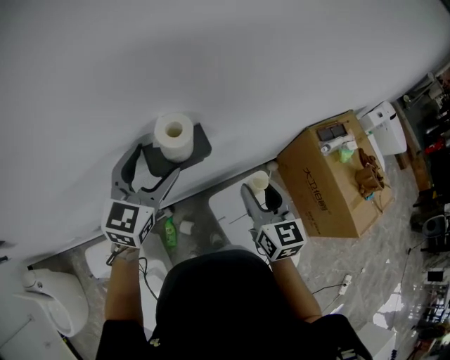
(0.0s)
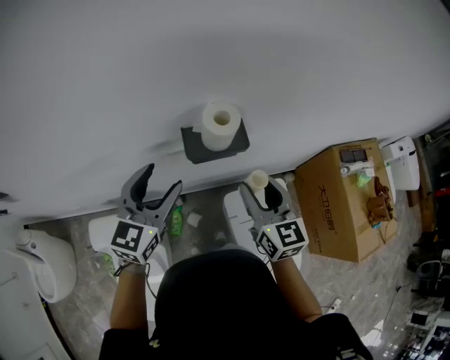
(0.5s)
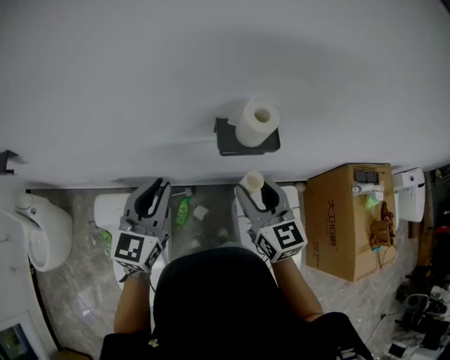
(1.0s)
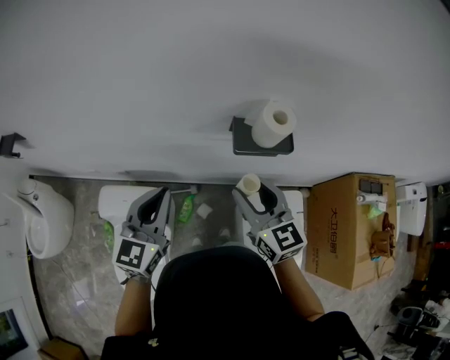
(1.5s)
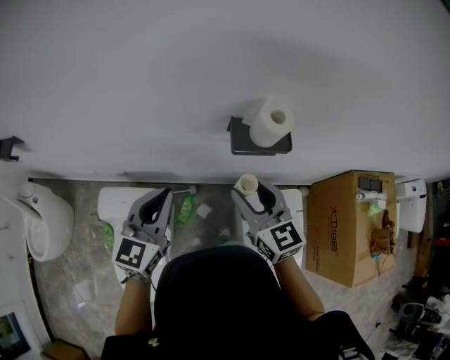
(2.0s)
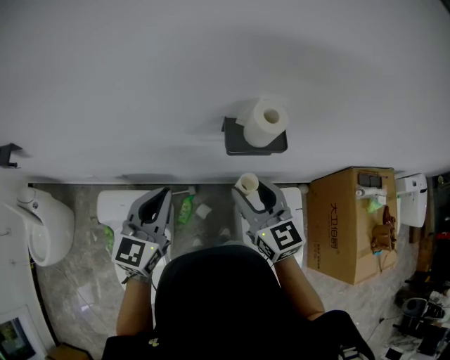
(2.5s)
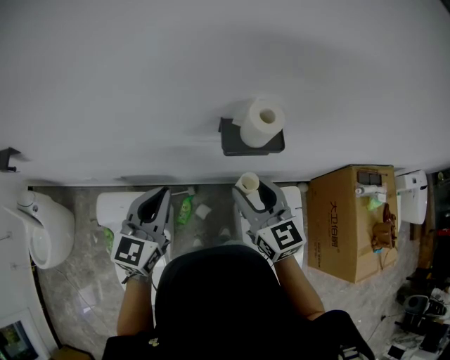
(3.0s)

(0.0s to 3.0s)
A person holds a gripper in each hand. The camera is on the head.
0.0s - 1.5s: The left gripper shifts by roughly 25 cm, changes its angle by about 30 degrees, and closes its fingers. Meanwhile the right gripper ends up roughly 20 cm from where it was, and rotates about 40 degrees.
1.5s - 3.0s: The grippers move only a little.

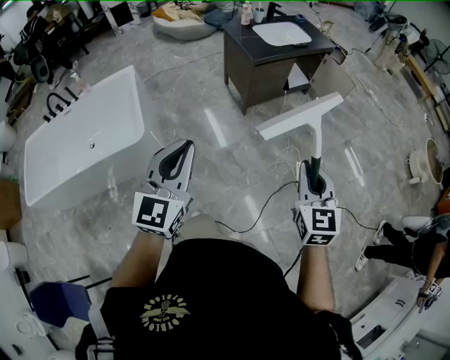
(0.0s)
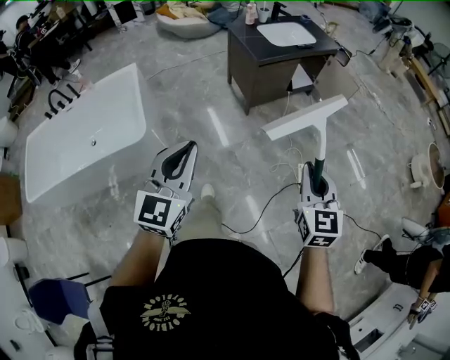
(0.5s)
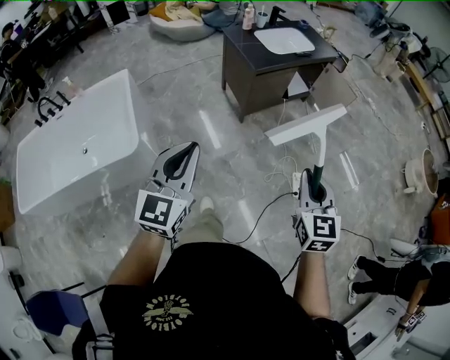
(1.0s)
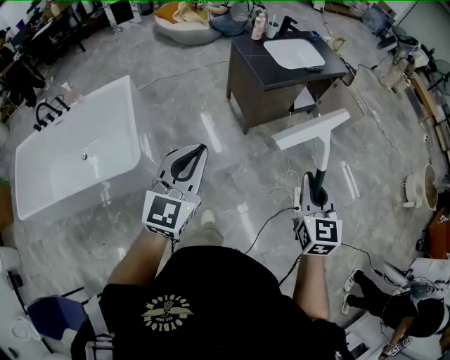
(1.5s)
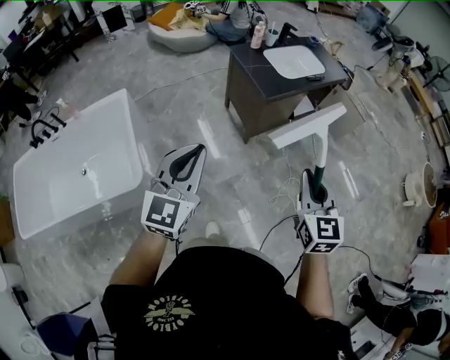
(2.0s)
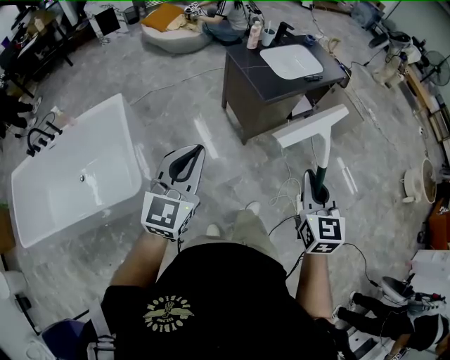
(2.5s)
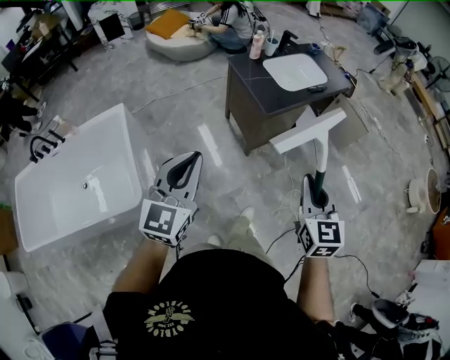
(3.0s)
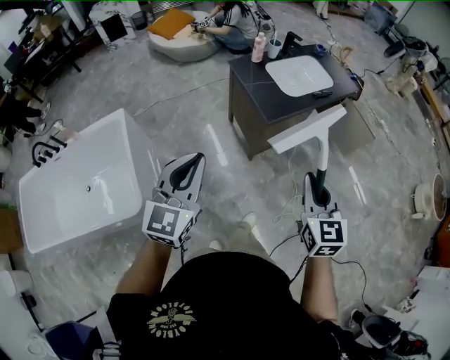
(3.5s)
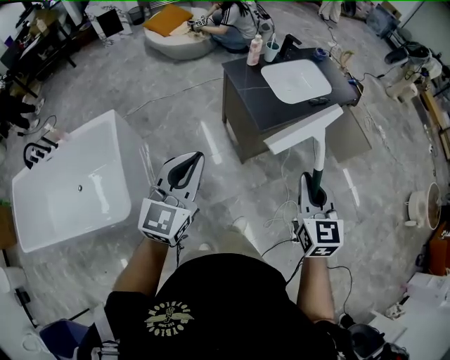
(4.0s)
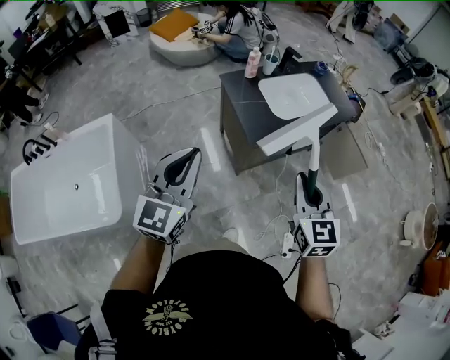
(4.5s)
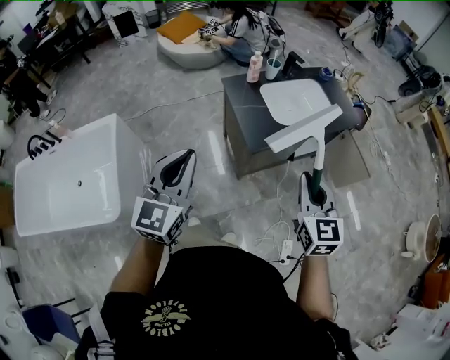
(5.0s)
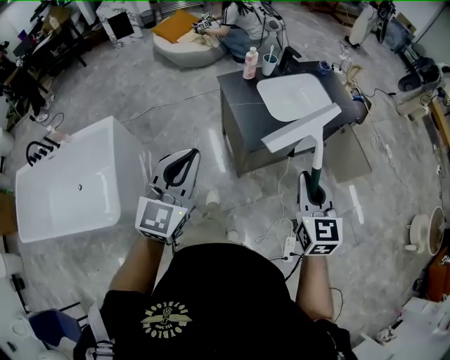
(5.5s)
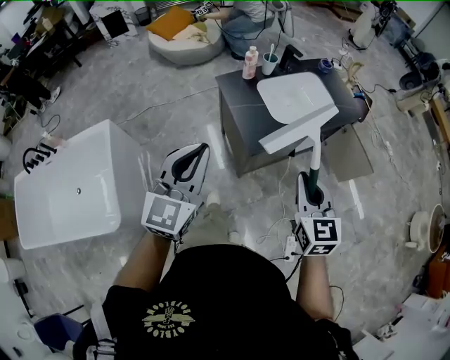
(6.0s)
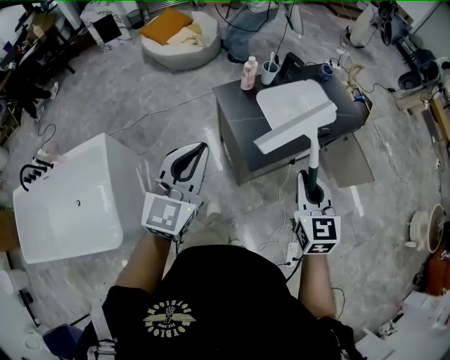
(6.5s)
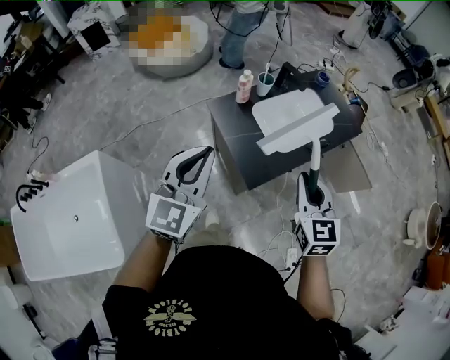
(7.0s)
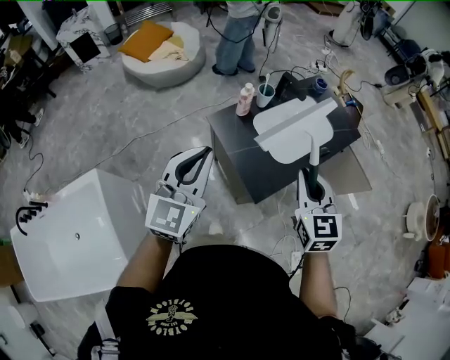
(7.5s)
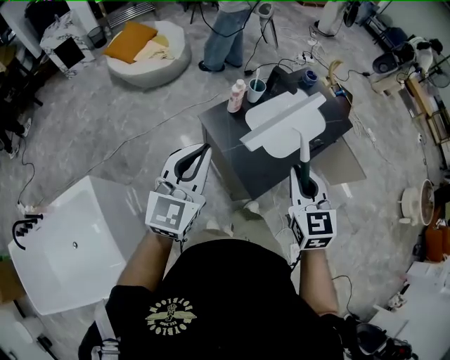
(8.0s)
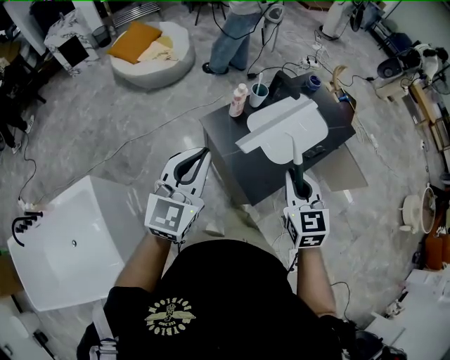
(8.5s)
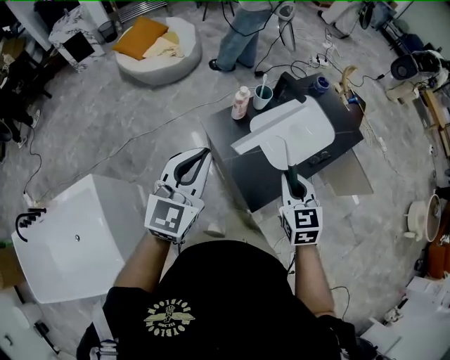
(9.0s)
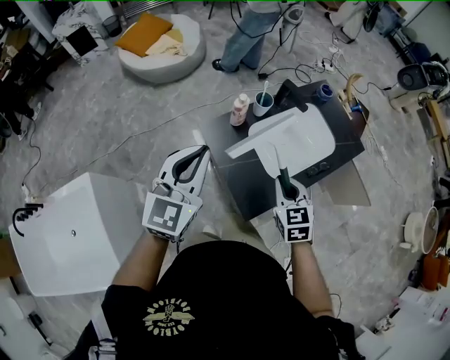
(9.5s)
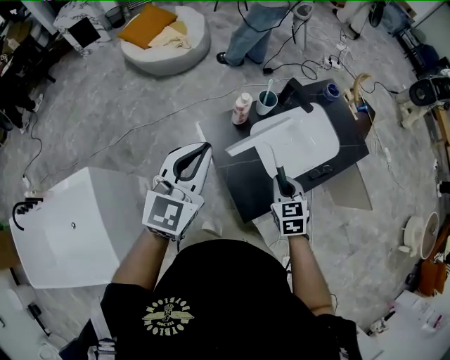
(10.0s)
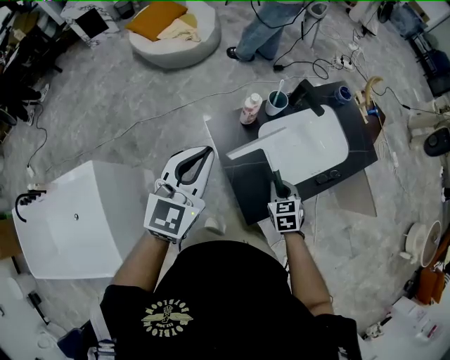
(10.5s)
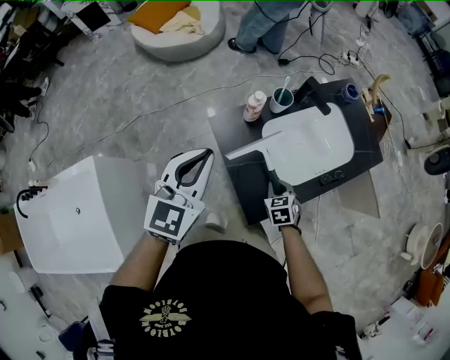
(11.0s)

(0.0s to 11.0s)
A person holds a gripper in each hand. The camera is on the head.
0.0s - 2.0s: Both grippers move forward and to the left, roughly 30 cm.
2.0s - 3.5s: Both grippers move forward, roughly 15 cm.
3.5s - 5.5s: Both grippers travel together forward and to the right, some 20 cm.
5.5s - 7.5s: The right gripper goes some 25 cm forward and to the left. Meanwhile the left gripper is displaced forward by about 30 cm.
7.5s - 9.0s: The left gripper shifts roughly 5 cm forward. The right gripper is displaced downward and forward by roughly 10 cm.
9.0s - 11.0s: The right gripper goes about 25 cm downward, and turns by approximately 30 degrees. The left gripper travels forward and downward by about 10 cm.

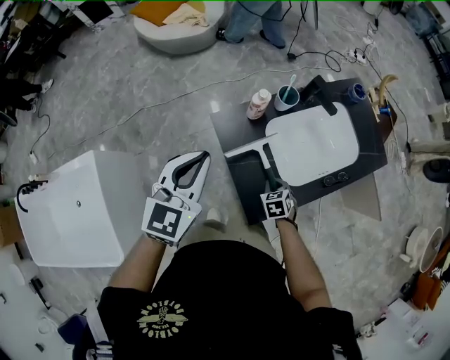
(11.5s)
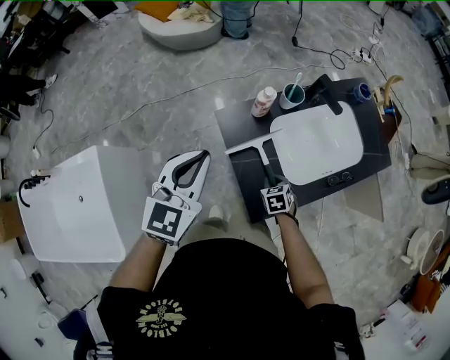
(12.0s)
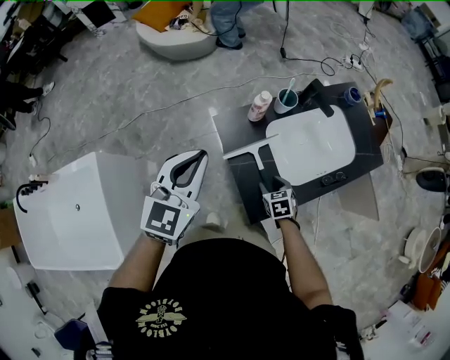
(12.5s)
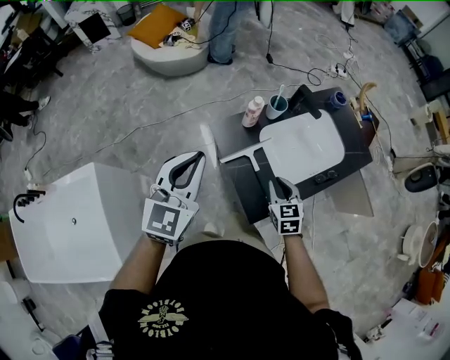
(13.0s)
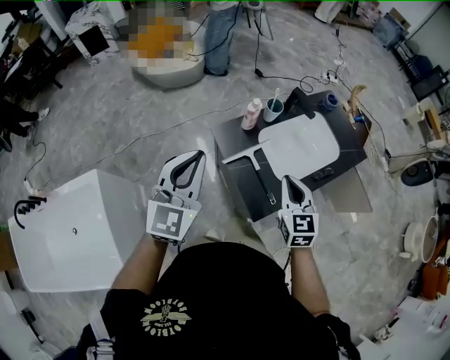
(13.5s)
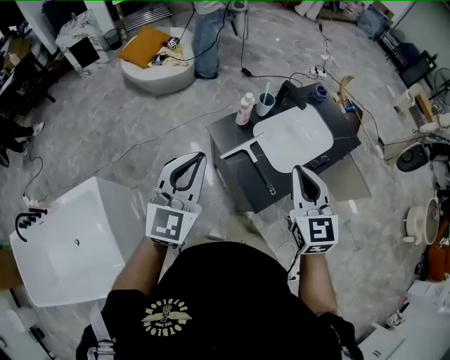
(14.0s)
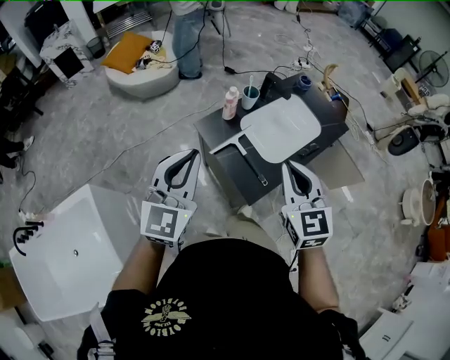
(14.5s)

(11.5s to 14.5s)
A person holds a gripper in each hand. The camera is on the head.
11.5s - 13.0s: The left gripper is displaced upward by some 5 cm, while the right gripper shifts about 15 cm upward, rotates some 30 degrees, and opens, then closes once more.
13.0s - 14.5s: The right gripper heads upward and backward, covering some 25 cm, and turns by some 20 degrees, while the left gripper travels backward and upward by some 10 cm.

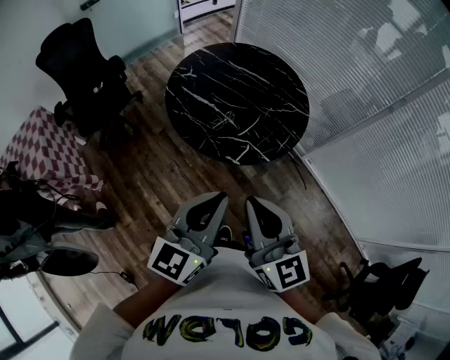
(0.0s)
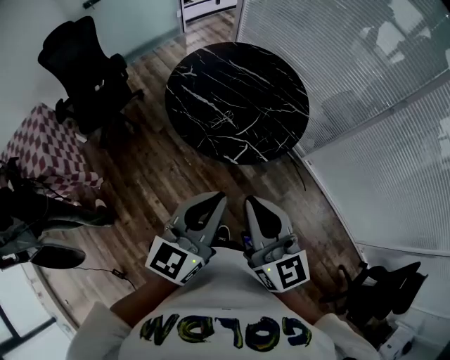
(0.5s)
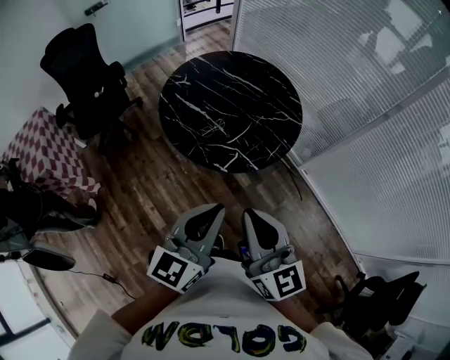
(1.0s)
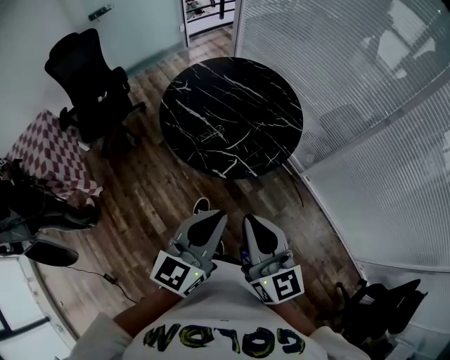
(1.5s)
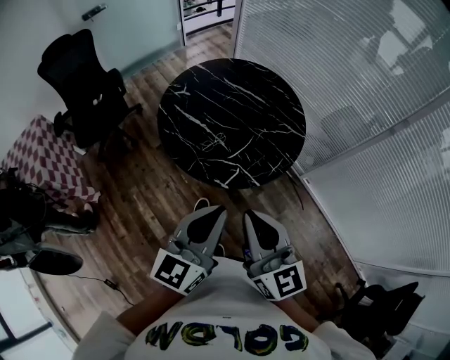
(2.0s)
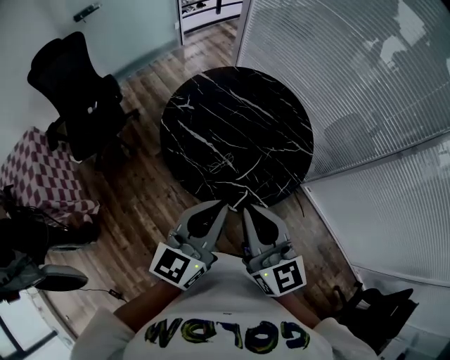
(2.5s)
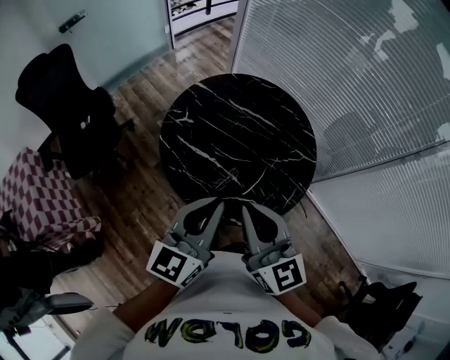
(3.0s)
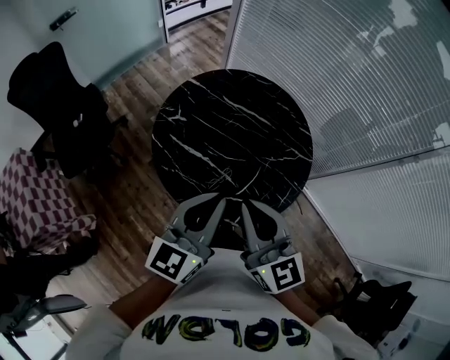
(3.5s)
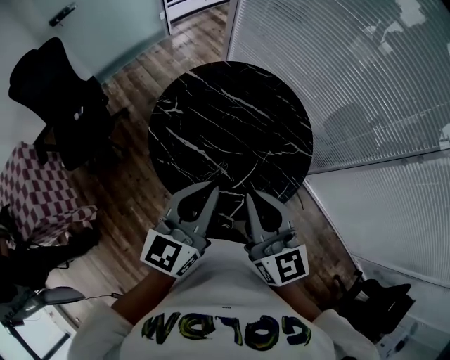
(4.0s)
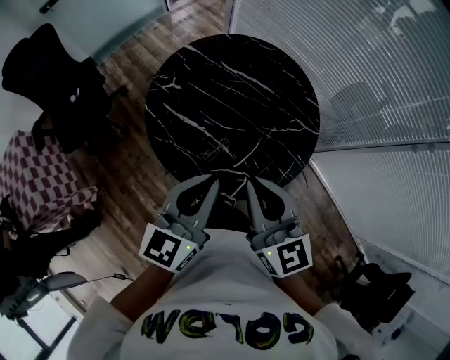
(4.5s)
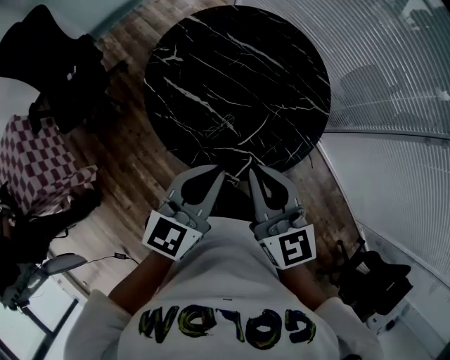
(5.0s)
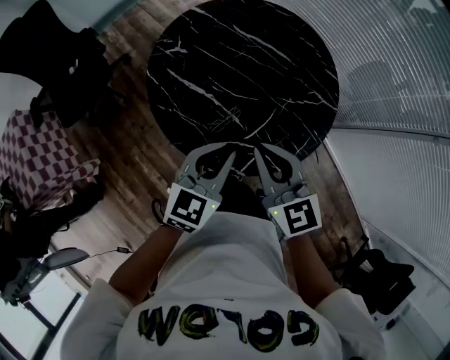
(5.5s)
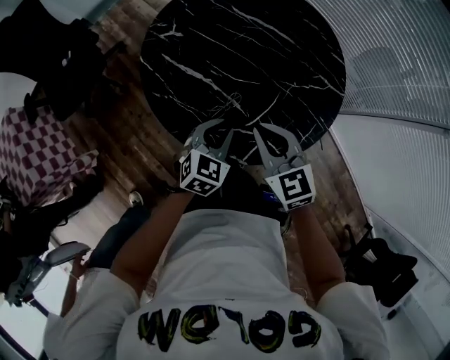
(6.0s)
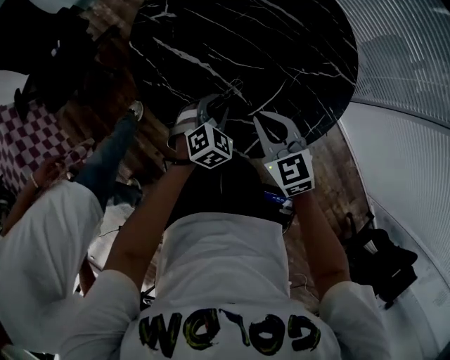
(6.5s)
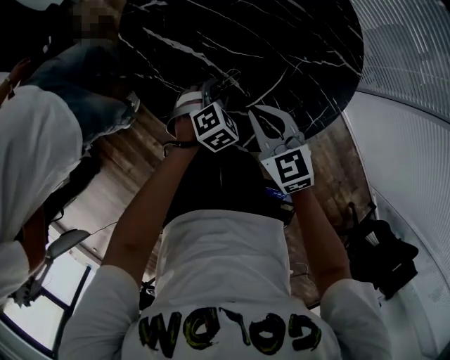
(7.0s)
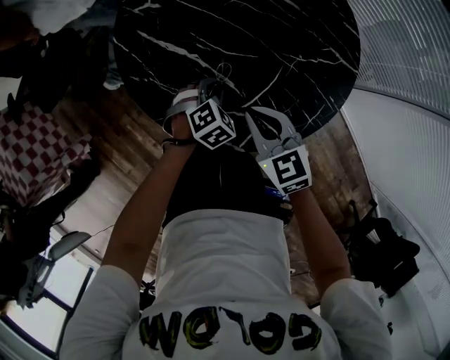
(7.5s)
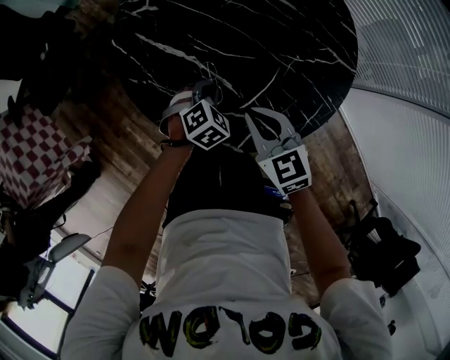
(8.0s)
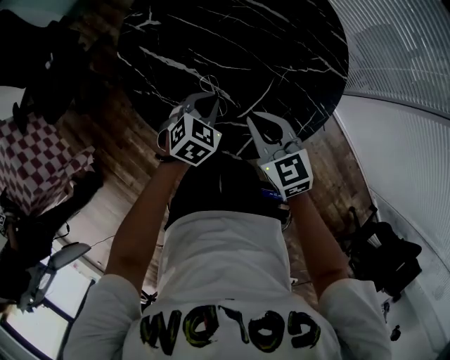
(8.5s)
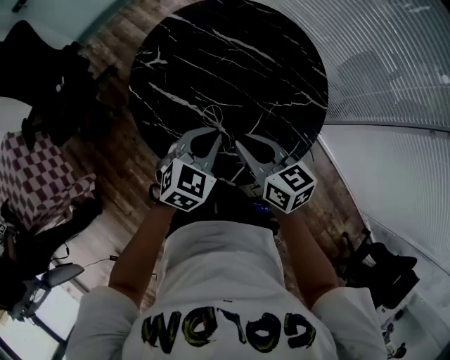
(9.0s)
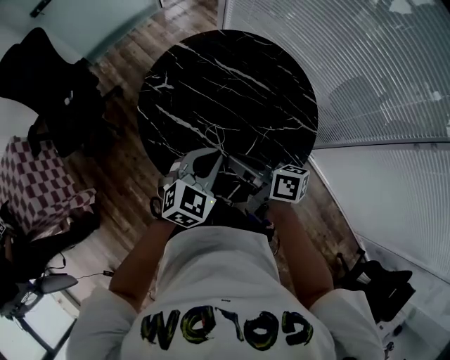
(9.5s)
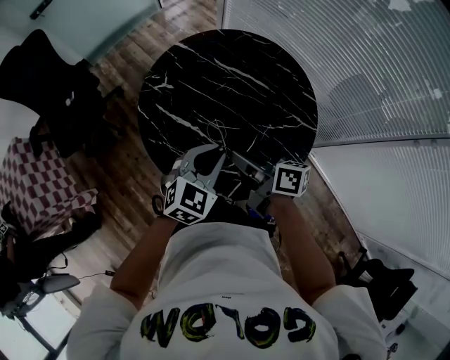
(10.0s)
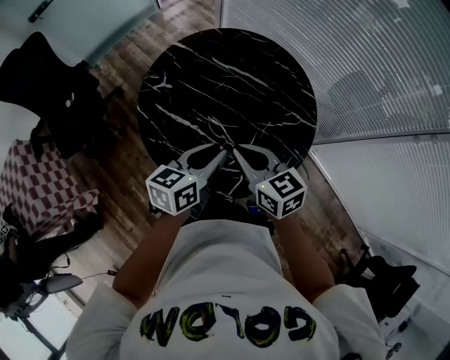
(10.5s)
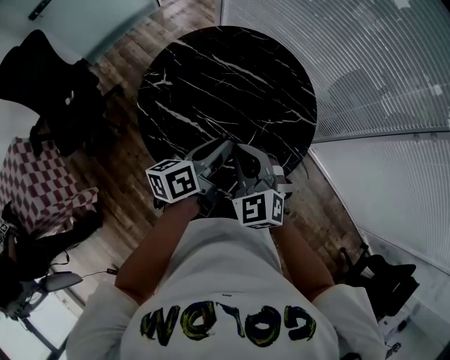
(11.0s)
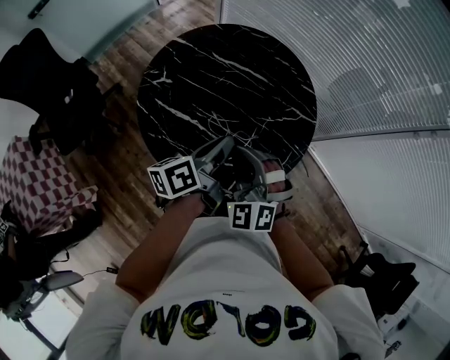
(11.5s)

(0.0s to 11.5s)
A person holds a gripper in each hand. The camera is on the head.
0.0s - 2.0s: The grippers both shift to the right and forward by about 10 cm.
2.0s - 4.0s: Both grippers move forward, about 25 cm.
4.0s - 6.0s: The two grippers go roughly 25 cm downward. The left gripper tips its fingers downward by roughly 40 degrees, while the right gripper turns by approximately 30 degrees.
6.0s - 7.5s: The right gripper moves downward, roughly 10 cm; the left gripper goes some 15 cm downward and forward, turns by some 30 degrees, and opens, then closes once more.
7.5s - 9.5s: The left gripper travels upward by some 25 cm, and tilts its fingers about 30 degrees upward, while the right gripper travels upward by some 15 cm, and rolls clockwise, seen from behind, by roughly 50 degrees.
9.5s - 11.5s: The right gripper rotates around the line of its fingers by roughly 90 degrees, counterclockwise from behind, while the left gripper twists about 70 degrees counterclockwise, seen from behind.
